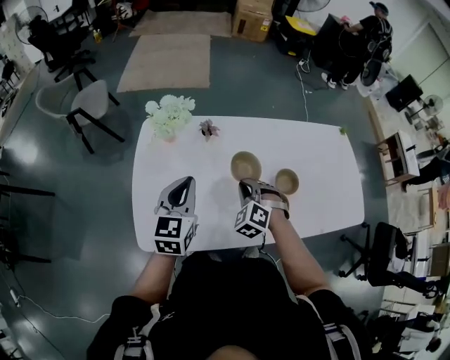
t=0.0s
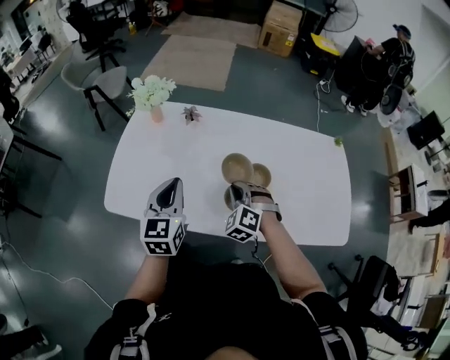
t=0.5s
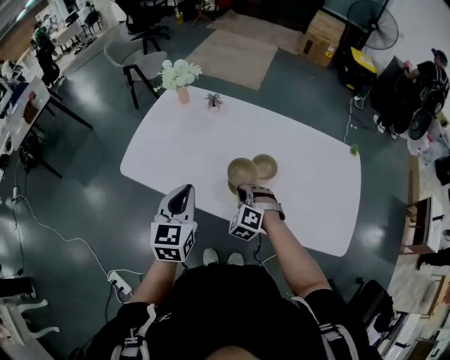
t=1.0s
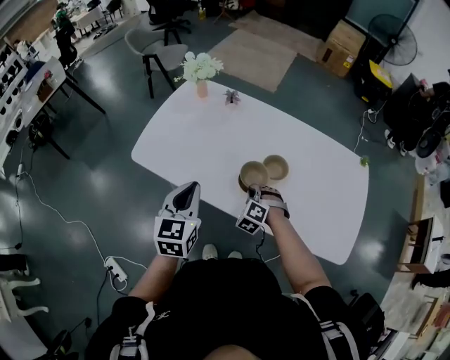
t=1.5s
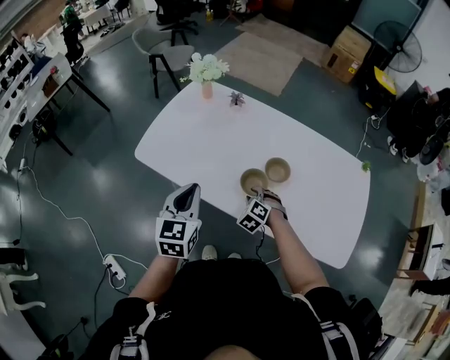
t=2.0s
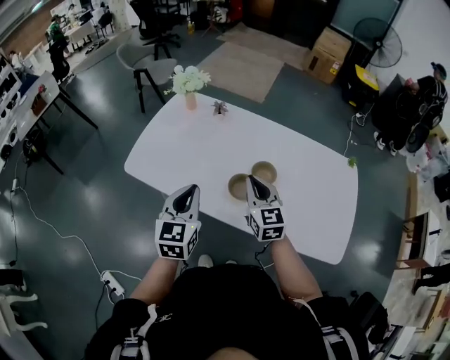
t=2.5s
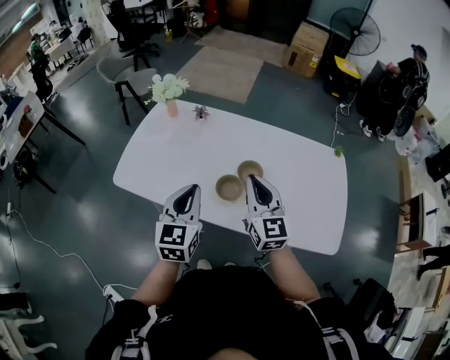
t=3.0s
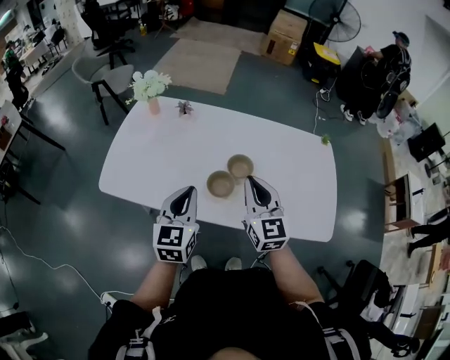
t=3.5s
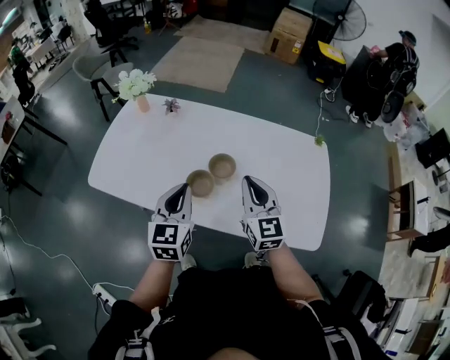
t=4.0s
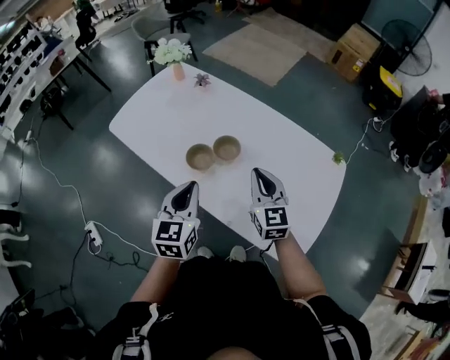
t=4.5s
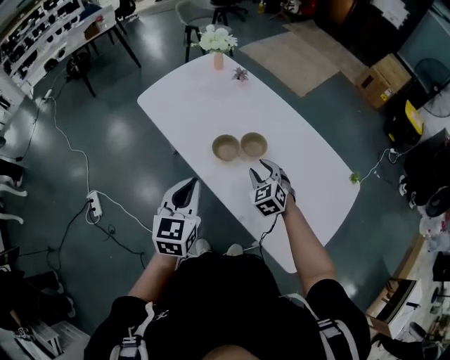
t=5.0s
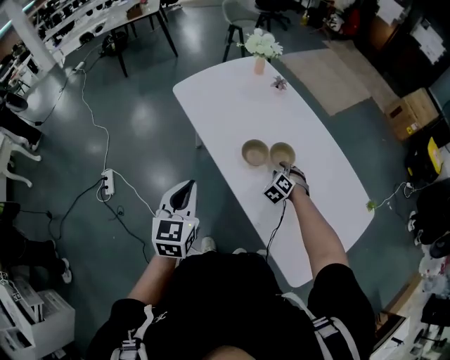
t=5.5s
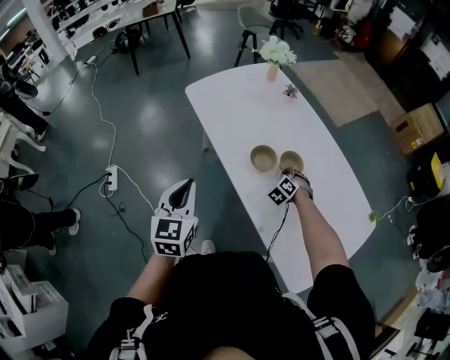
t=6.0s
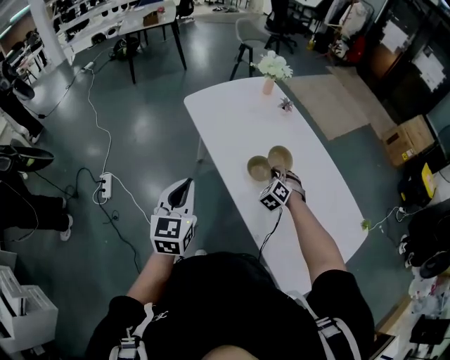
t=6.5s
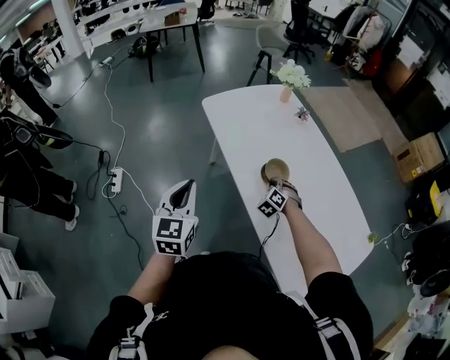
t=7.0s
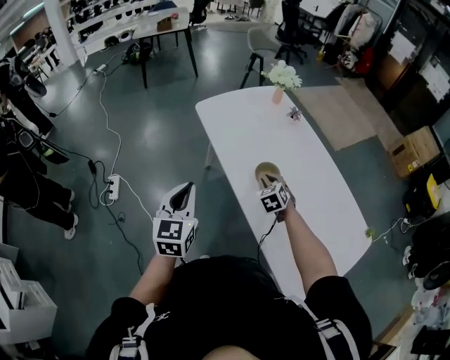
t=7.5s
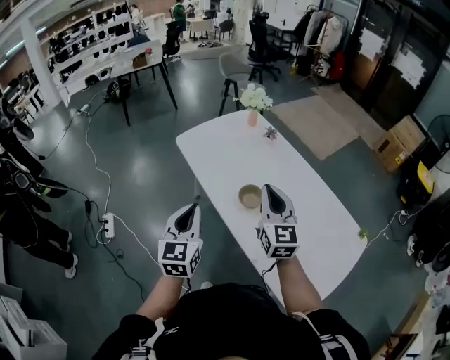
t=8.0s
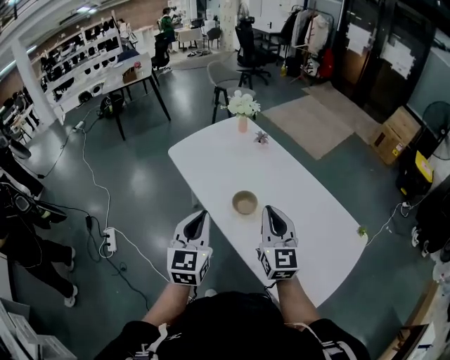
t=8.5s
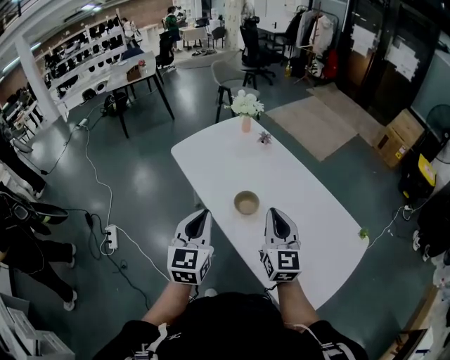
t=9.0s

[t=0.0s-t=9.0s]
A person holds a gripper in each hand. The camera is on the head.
t=0.0s to t=2.0s: The right gripper shifts by approximately 40 cm, and changes its angle by some 30 degrees; the left gripper shifts by approximately 40 cm, and turns by roughly 30 degrees.
t=2.0s to t=4.5s: The left gripper shifts some 35 cm to the right; the right gripper moves to the right and upward, roughly 40 cm, tilts its fingers some 40 degrees upward, and closes up.
t=4.5s to t=7.0s: The right gripper goes up and down, about 25 cm each way, reversing 2 times, rotates around the line of its fingers by some 60 degrees, counterclockwise from behind, and opens and closes again; the left gripper heads to the left and backward, covering approximately 30 cm, and rotates roughly 30 degrees.
t=7.0s to t=9.0s: The right gripper travels upward and backward by some 35 cm, and tips its fingers upward by about 50 degrees. The left gripper travels to the right and upward by about 15 cm.

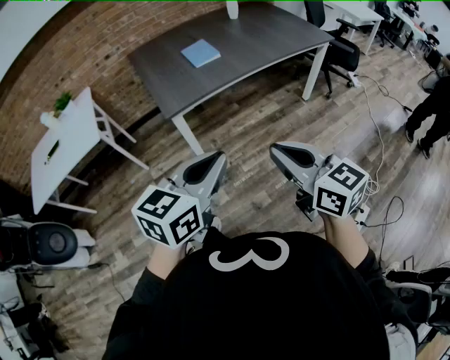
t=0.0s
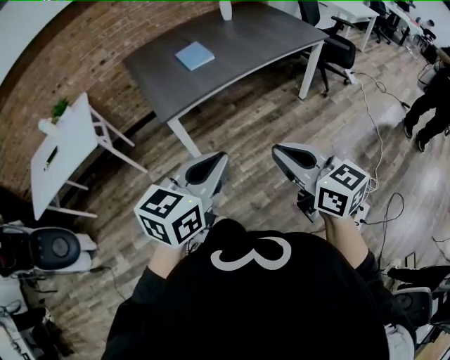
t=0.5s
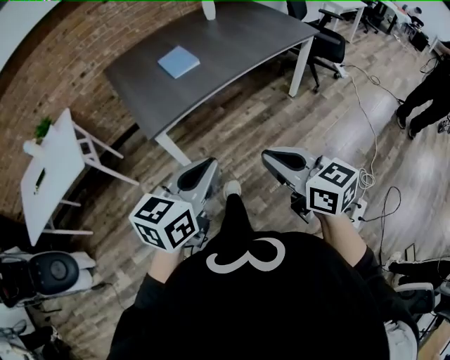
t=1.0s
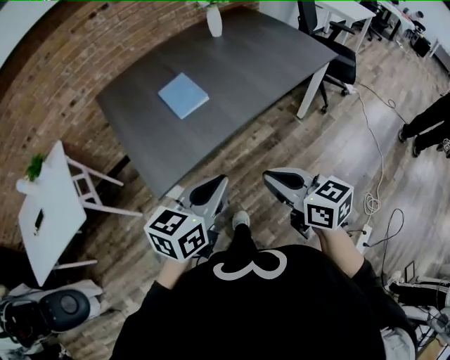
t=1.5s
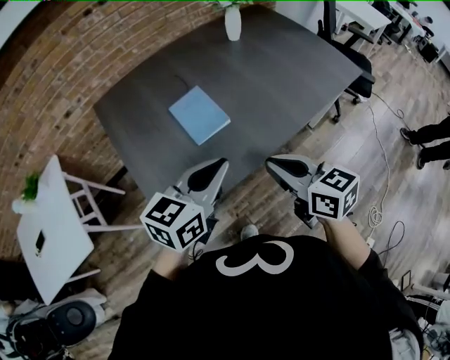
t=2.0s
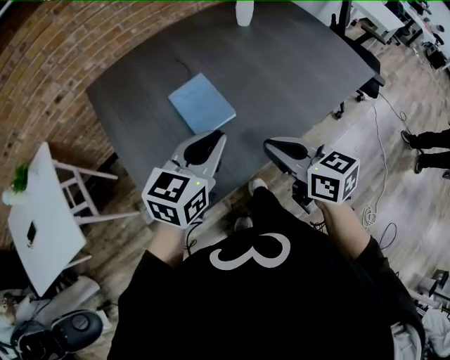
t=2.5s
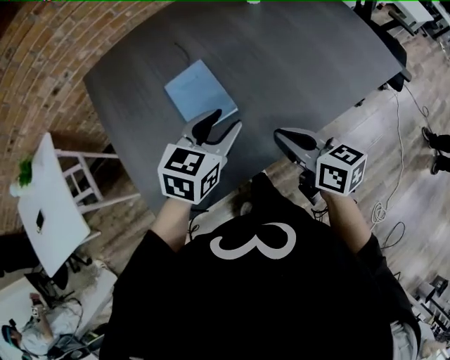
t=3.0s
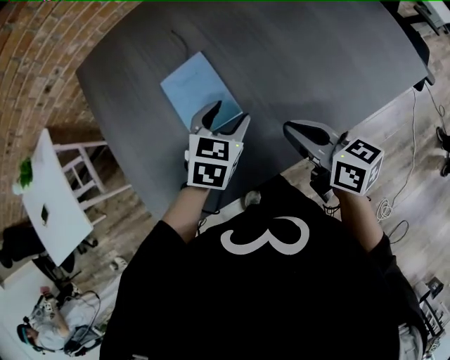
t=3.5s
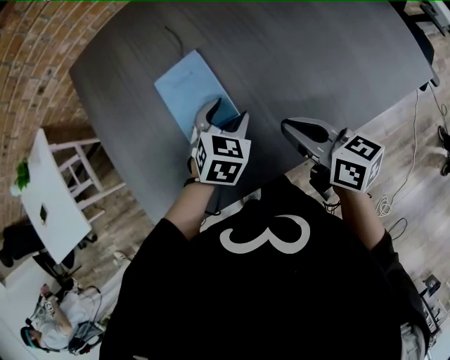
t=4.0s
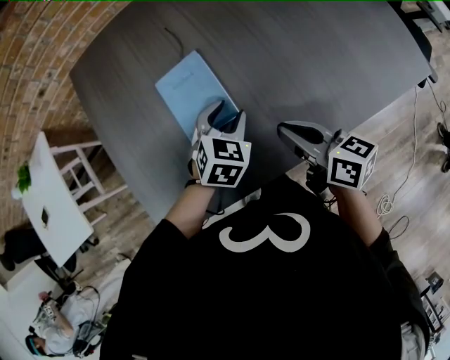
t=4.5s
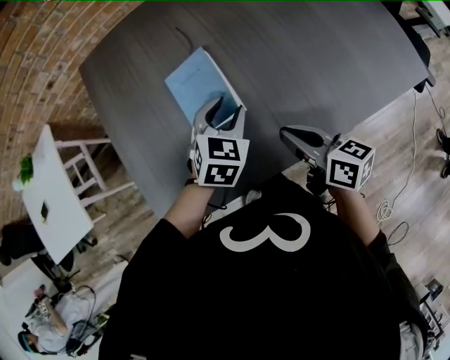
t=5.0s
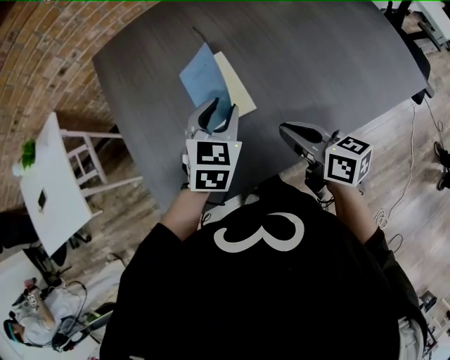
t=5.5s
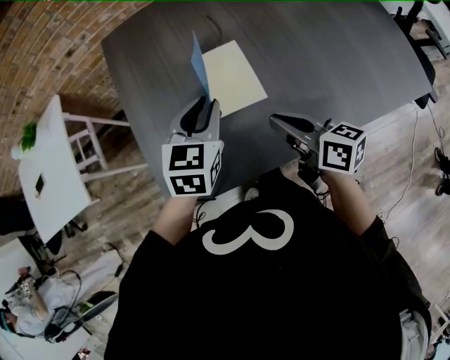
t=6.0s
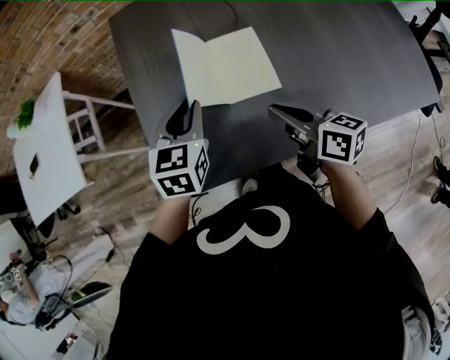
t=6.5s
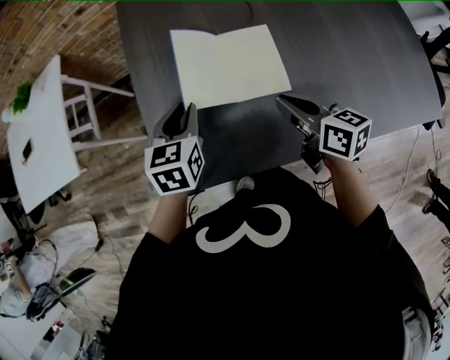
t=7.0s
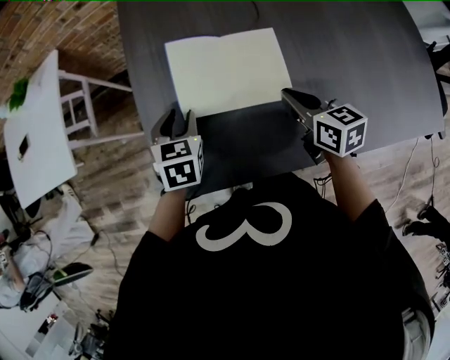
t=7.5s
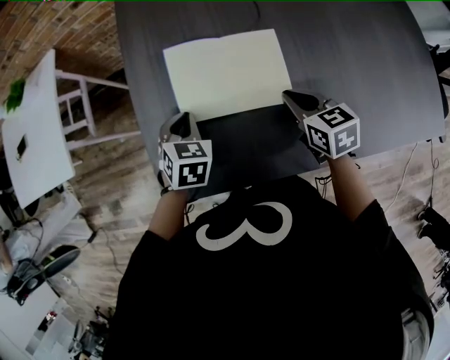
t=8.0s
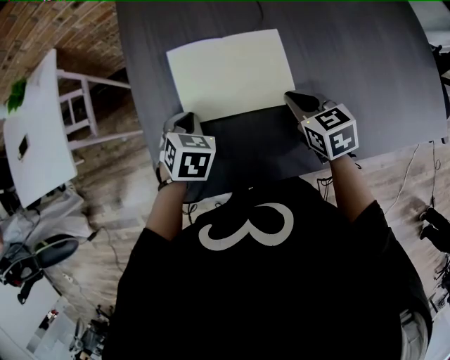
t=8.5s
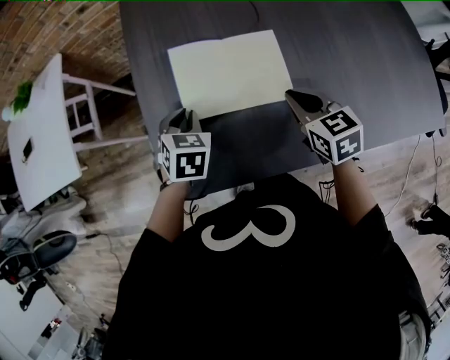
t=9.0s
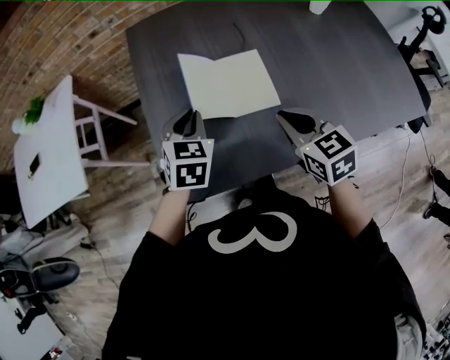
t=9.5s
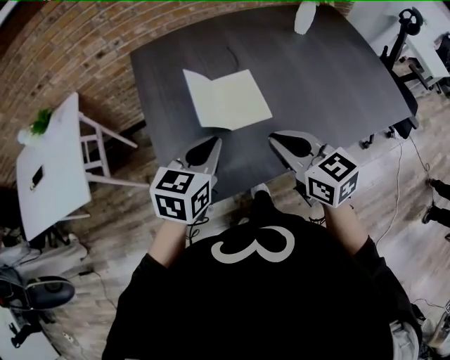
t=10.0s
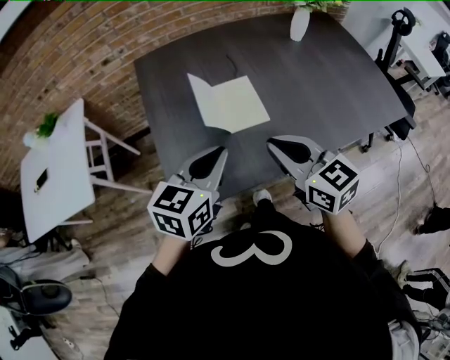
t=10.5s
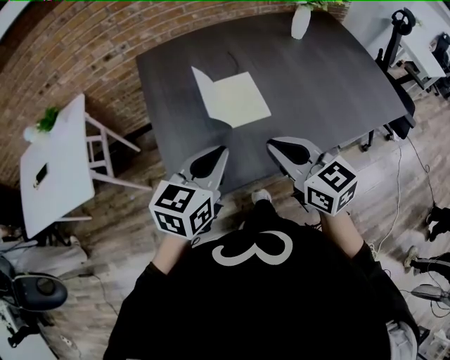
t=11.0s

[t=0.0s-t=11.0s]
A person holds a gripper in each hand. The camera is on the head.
t=0.0s to t=2.0s: Both grippers are carried forward, some 50 cm.
t=2.0s to t=3.5s: Both grippers travel together forward and downward, roughly 25 cm. The left gripper turns by some 30 degrees, and opens its fingers.
t=3.5s to t=5.5s: The left gripper shifts approximately 10 cm to the left and upward, and closes its fingers.
t=5.5s to t=7.5s: The left gripper goes about 20 cm to the left, and turns by roughly 30 degrees; the right gripper moves forward and downward, approximately 10 cm, and rotates approximately 20 degrees.
t=7.5s to t=9.0s: The left gripper closes.
t=9.0s to t=11.0s: The right gripper moves backward and upward, approximately 20 cm, and swivels roughly 20 degrees. The left gripper shifts about 25 cm upward, backward and to the right, and points its fingers approximately 30 degrees further upward.

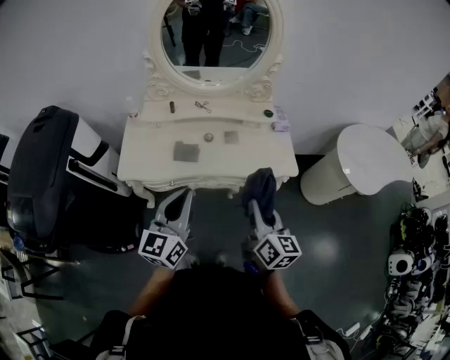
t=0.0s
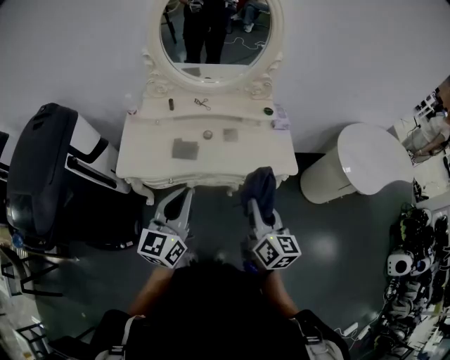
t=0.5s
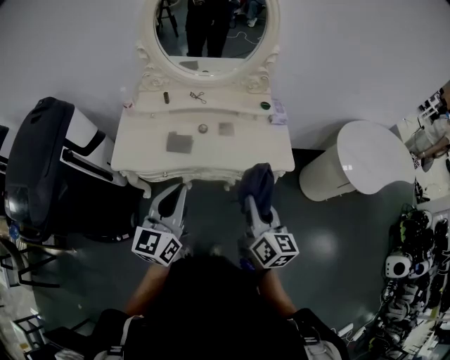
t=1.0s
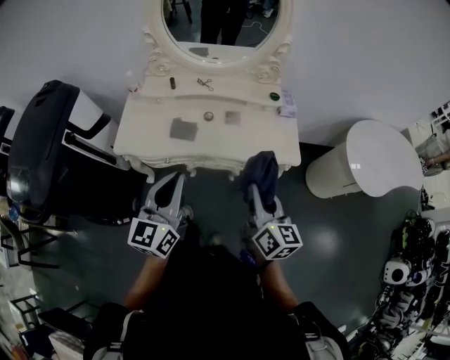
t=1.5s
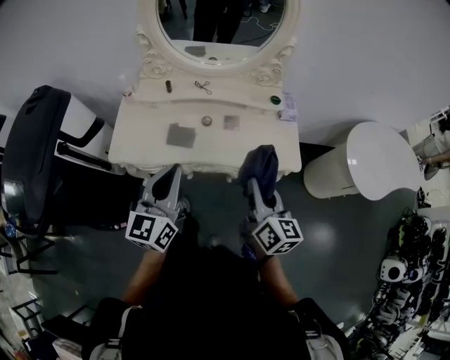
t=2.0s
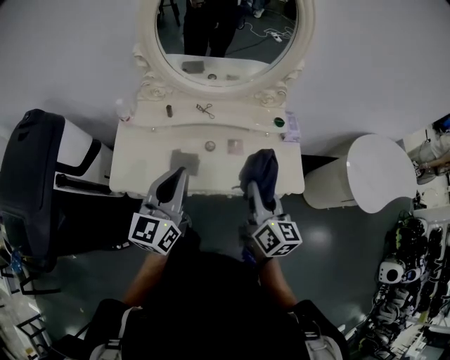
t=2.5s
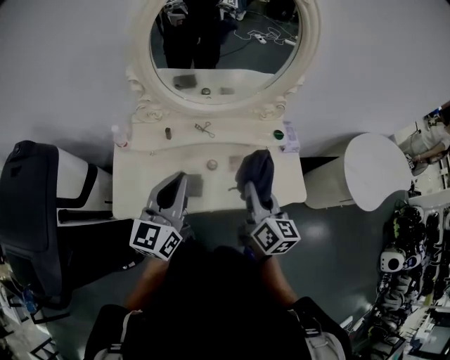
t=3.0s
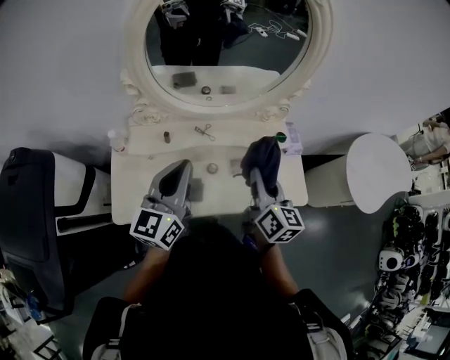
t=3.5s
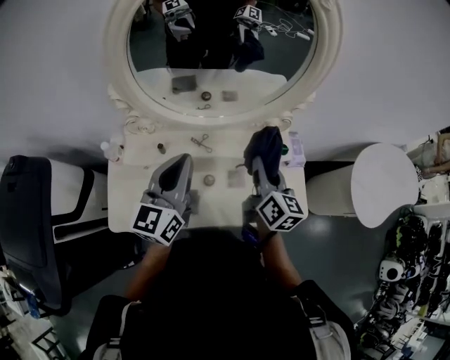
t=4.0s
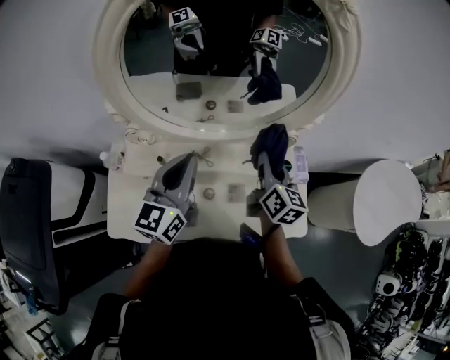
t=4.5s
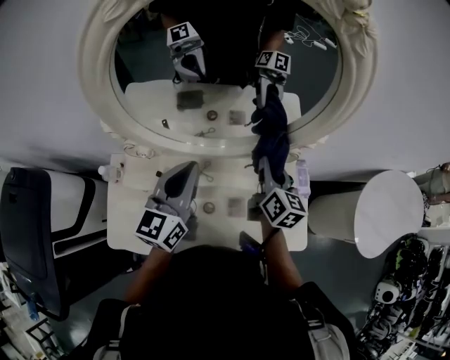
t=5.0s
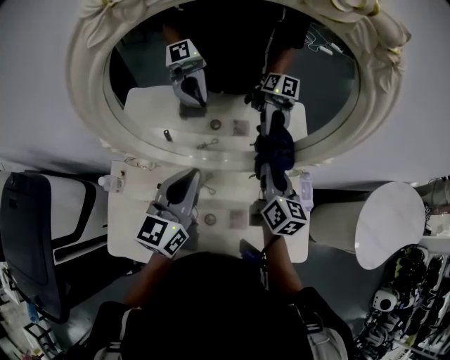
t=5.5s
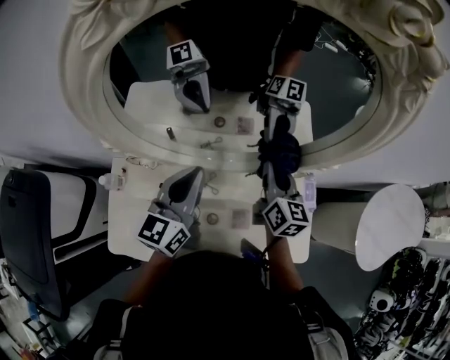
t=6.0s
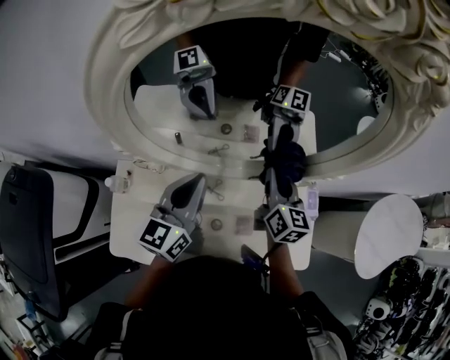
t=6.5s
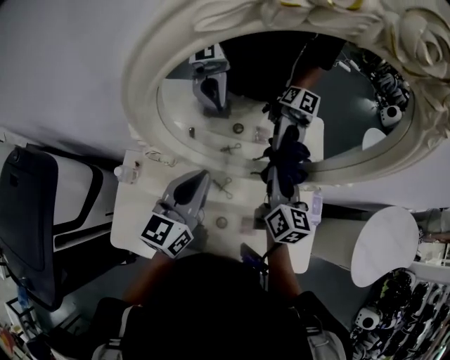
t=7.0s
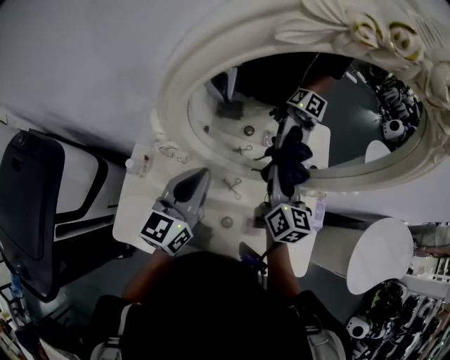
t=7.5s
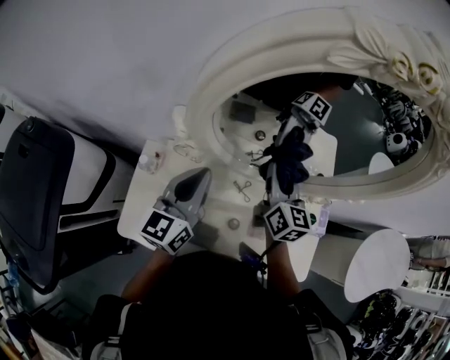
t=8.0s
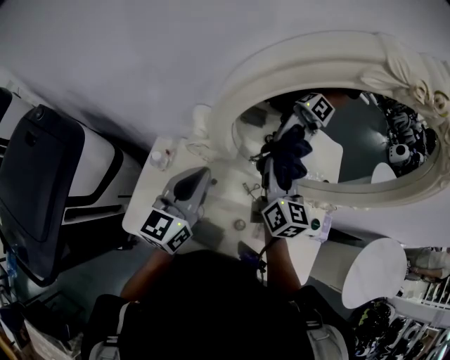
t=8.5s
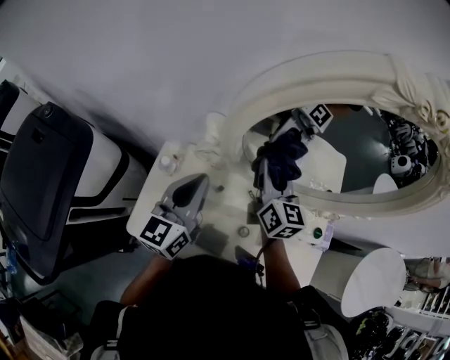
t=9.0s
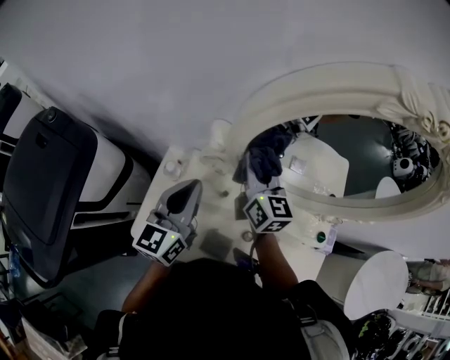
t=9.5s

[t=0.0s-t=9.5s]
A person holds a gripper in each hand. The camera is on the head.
t=0.0s to t=2.0s: Both grippers travel together forward, some 10 cm.
t=2.0s to t=4.0s: Both grippers move forward, some 35 cm.
t=4.0s to t=5.5s: Both grippers move forward, about 15 cm.
t=5.5s to t=7.5s: The two grippers go roughly 10 cm to the left.
t=7.5s to t=9.5s: The left gripper moves to the left, some 15 cm; the right gripper heads to the left, covering about 25 cm, and changes its angle by some 20 degrees.
